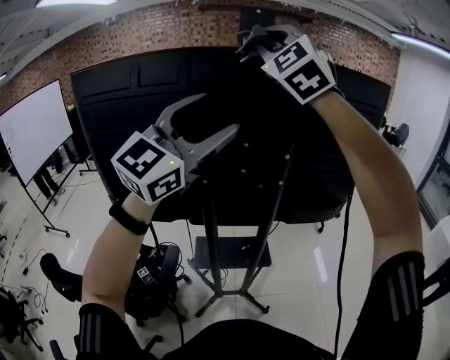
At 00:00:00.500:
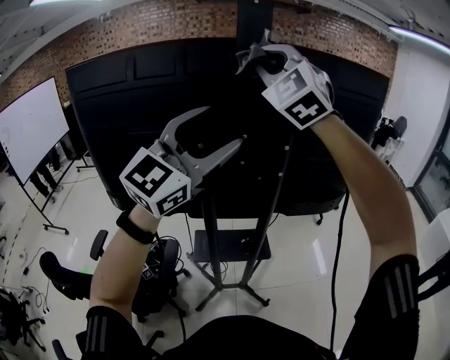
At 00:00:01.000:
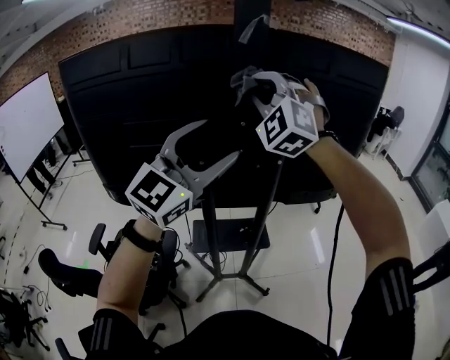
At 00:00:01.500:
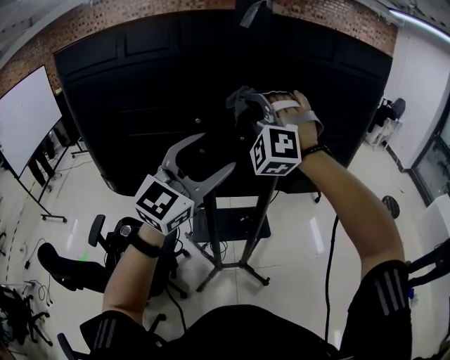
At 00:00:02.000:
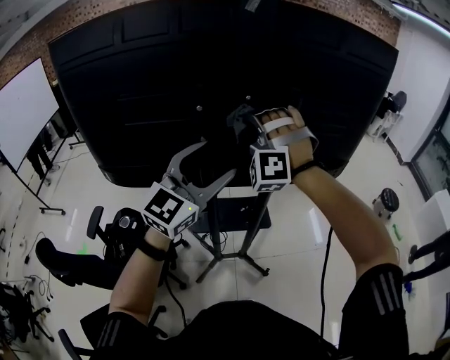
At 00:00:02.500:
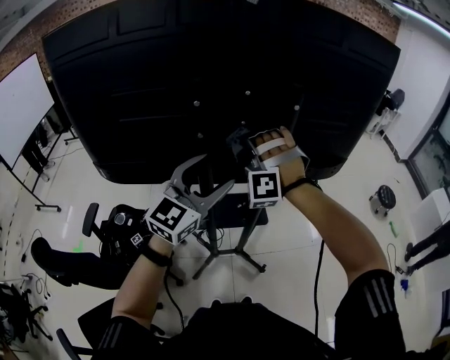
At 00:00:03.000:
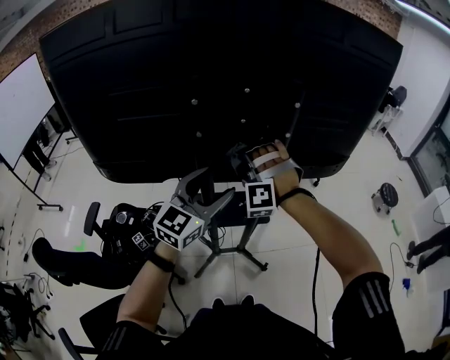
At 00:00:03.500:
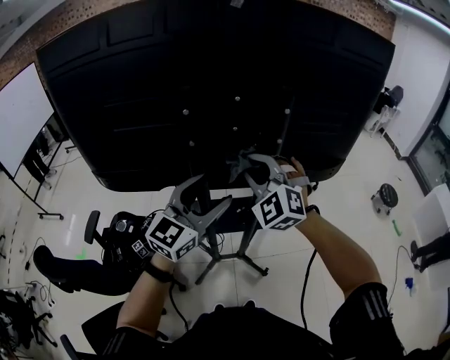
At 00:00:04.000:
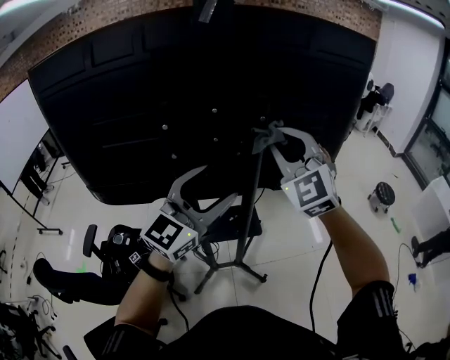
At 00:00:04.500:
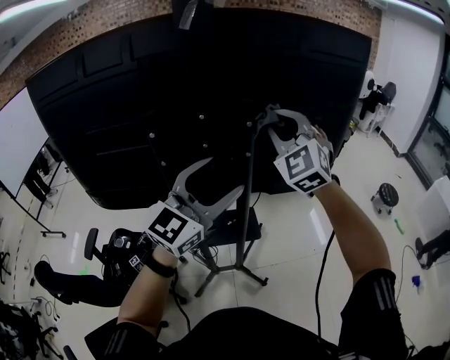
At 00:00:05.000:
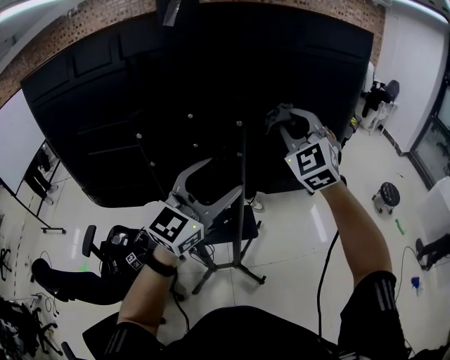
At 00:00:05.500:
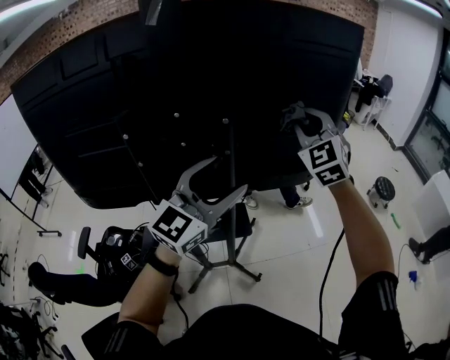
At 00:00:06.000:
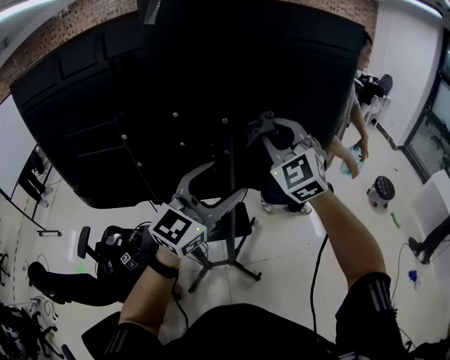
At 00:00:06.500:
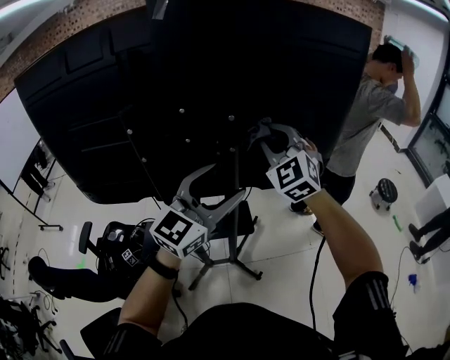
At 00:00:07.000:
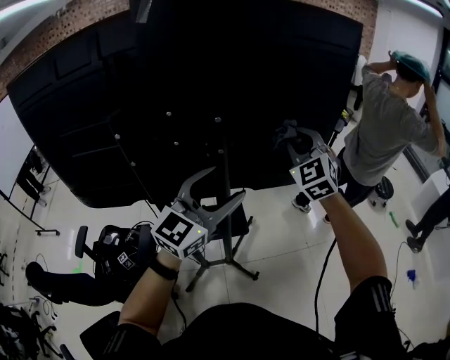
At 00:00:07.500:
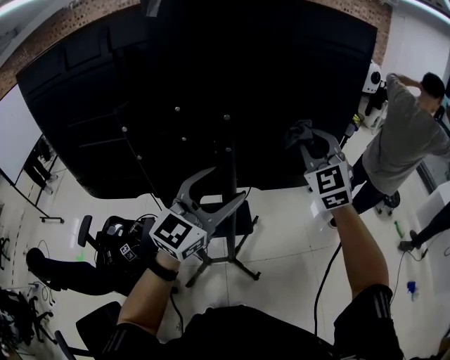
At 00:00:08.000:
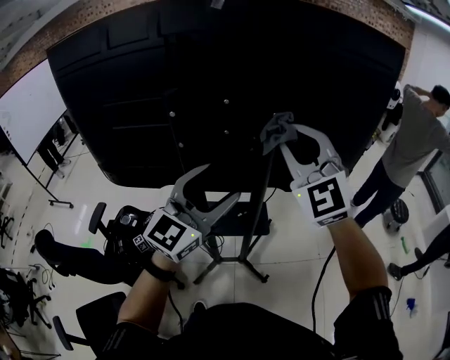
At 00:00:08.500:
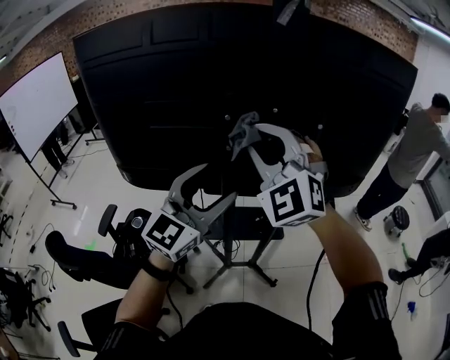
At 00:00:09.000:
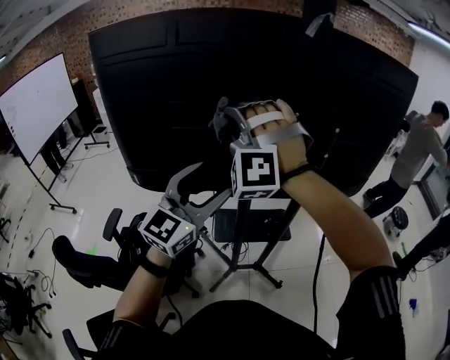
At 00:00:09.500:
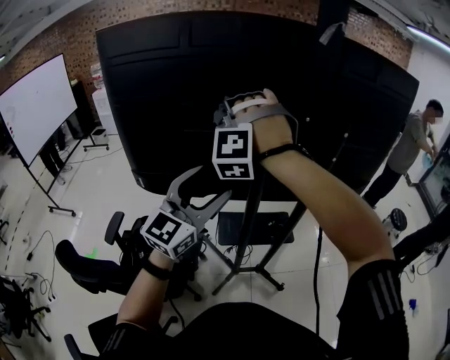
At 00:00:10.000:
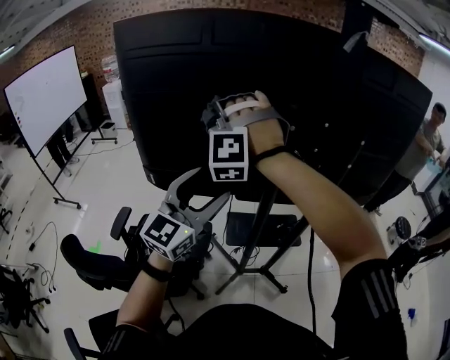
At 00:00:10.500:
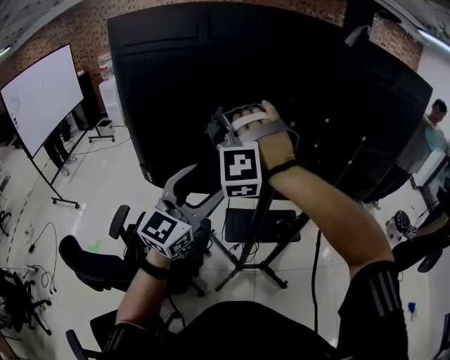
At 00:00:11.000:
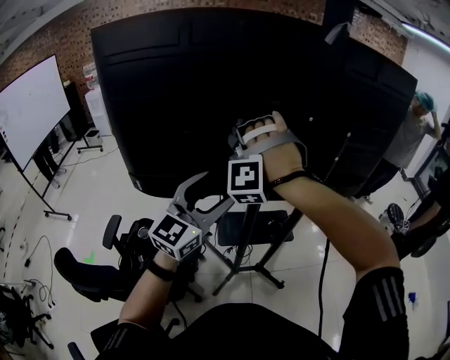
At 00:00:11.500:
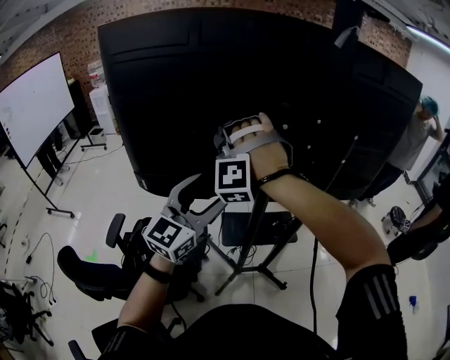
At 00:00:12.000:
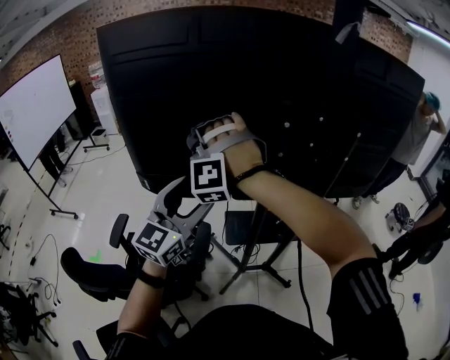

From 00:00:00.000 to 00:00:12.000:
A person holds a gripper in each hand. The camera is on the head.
From 00:00:00.000 to 00:00:02.000: The left gripper heads downward, covering about 25 cm. Meanwhile the right gripper heads downward, covering some 35 cm, and turns by roughly 40 degrees.
From 00:00:02.000 to 00:00:04.000: The right gripper travels to the right by about 15 cm, moves some 15 cm downward and comes back, and rolls clockwise, seen from behind, by some 50 degrees; the left gripper is displaced to the right by approximately 5 cm, and moves roughly 10 cm downward and comes back.
From 00:00:04.000 to 00:00:06.000: The right gripper goes about 10 cm forward and to the right, while the left gripper is displaced to the right and forward by roughly 10 cm.
From 00:00:06.000 to 00:00:08.000: The right gripper travels backward and to the left by roughly 10 cm. The left gripper heads to the left, covering some 10 cm.
From 00:00:08.000 to 00:00:10.000: The right gripper heads to the left, covering roughly 40 cm, and rolls counterclockwise, seen from behind, by approximately 60 degrees. The left gripper is displaced to the left by about 25 cm.
From 00:00:10.000 to 00:00:12.000: The right gripper moves downward, roughly 5 cm, and travels to the right and back again, approximately 10 cm each way.

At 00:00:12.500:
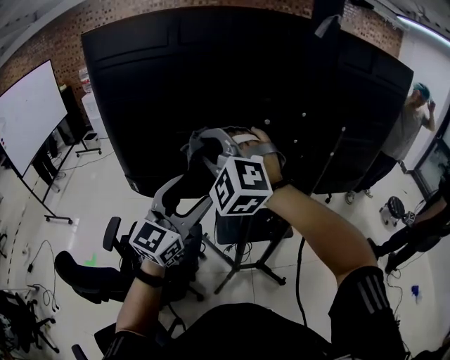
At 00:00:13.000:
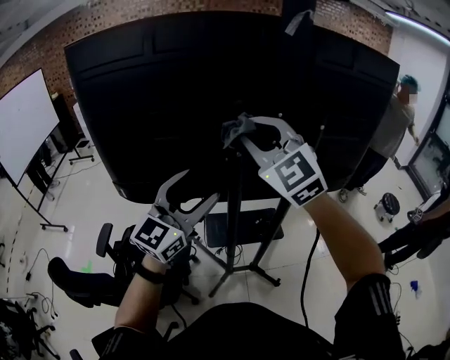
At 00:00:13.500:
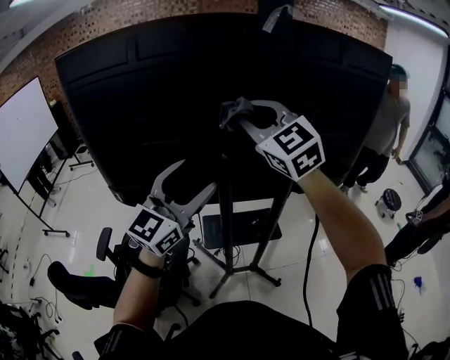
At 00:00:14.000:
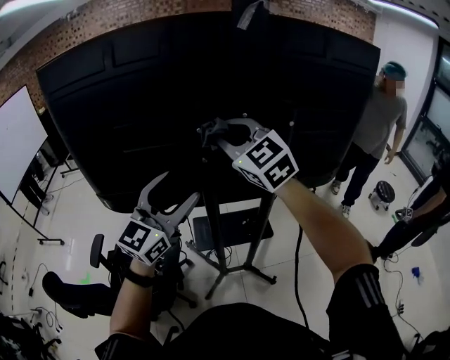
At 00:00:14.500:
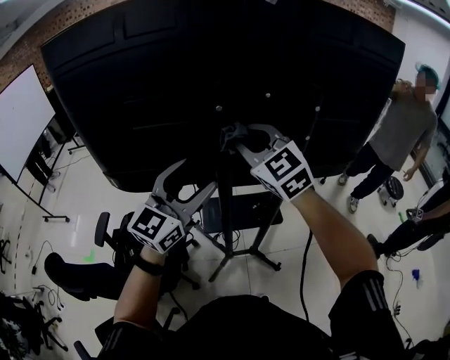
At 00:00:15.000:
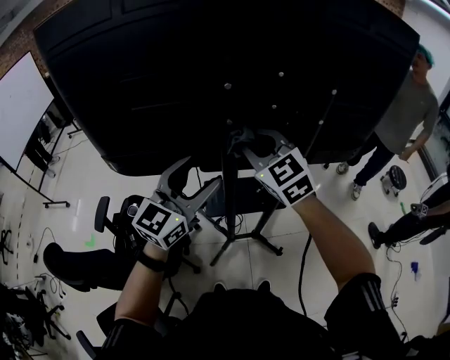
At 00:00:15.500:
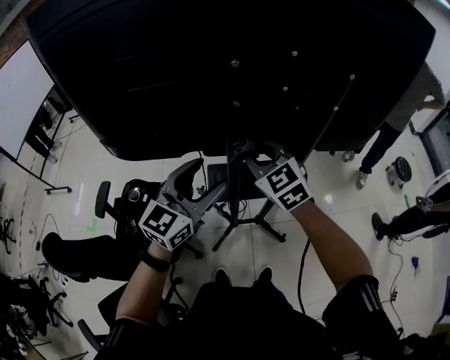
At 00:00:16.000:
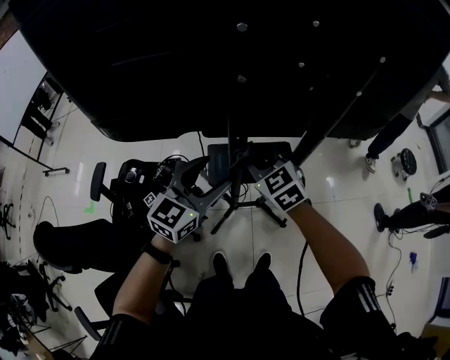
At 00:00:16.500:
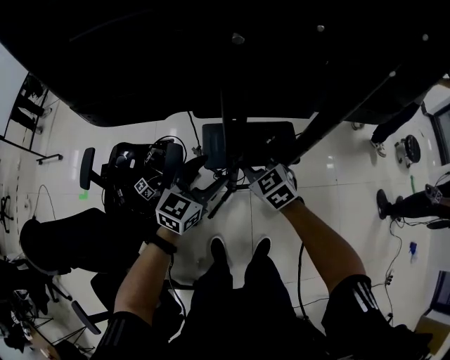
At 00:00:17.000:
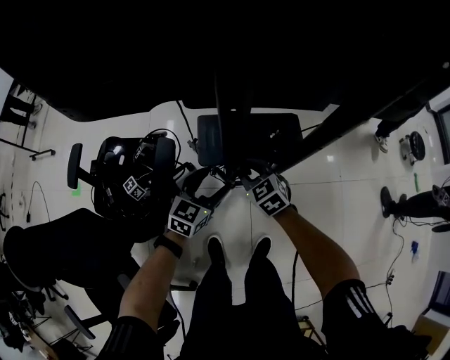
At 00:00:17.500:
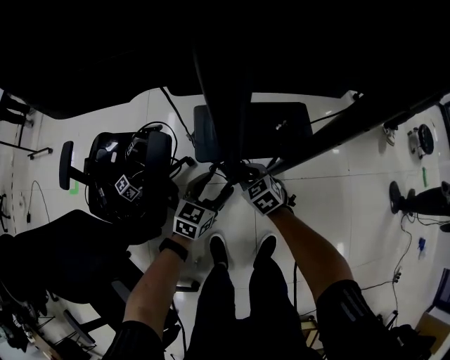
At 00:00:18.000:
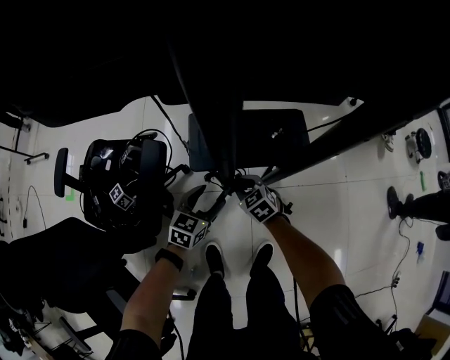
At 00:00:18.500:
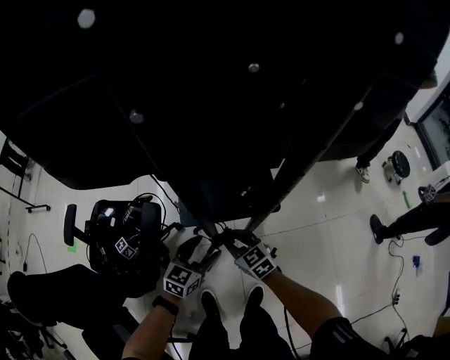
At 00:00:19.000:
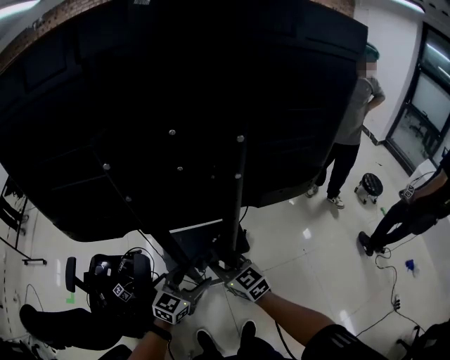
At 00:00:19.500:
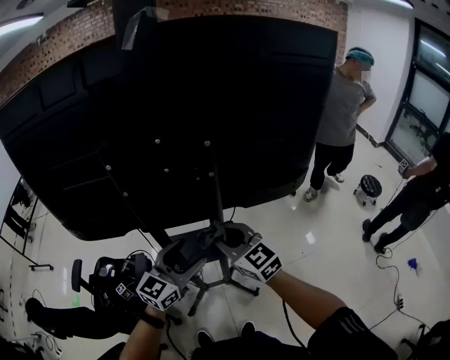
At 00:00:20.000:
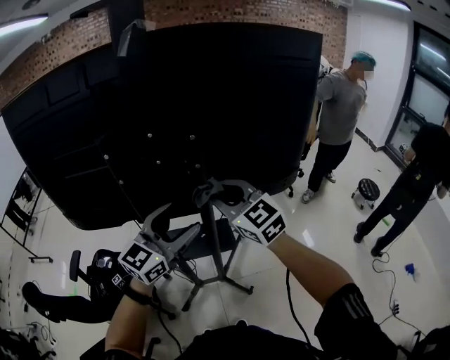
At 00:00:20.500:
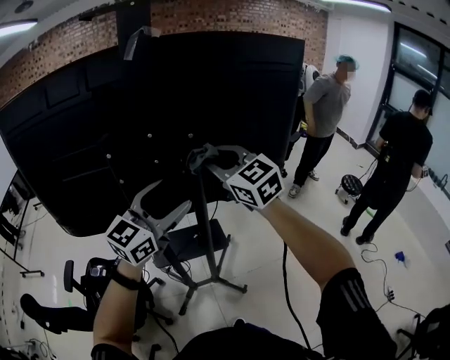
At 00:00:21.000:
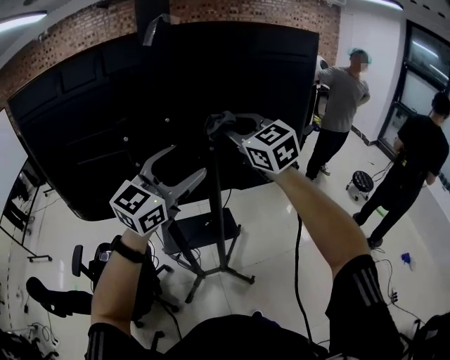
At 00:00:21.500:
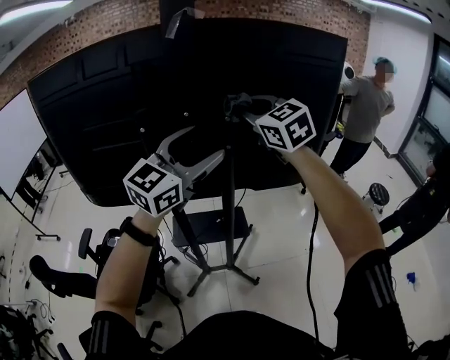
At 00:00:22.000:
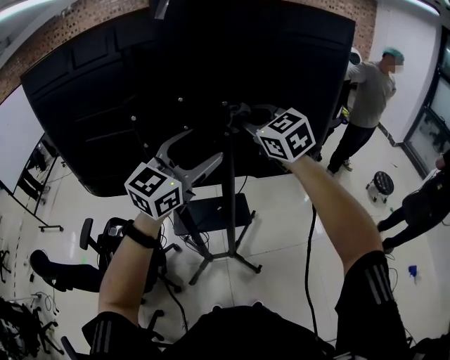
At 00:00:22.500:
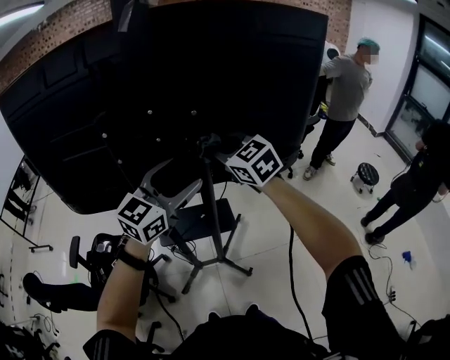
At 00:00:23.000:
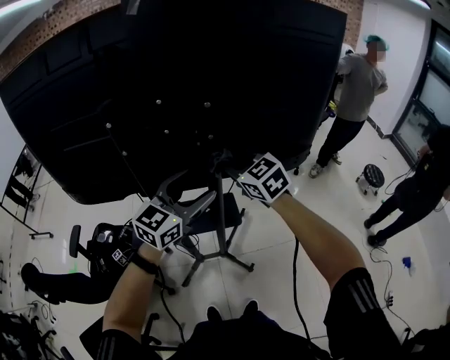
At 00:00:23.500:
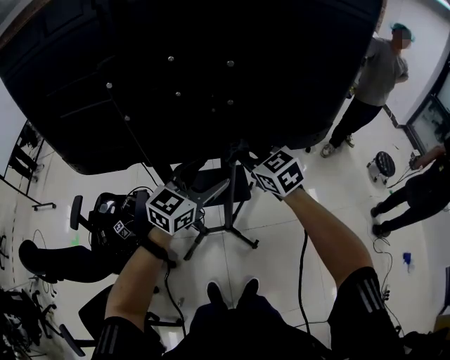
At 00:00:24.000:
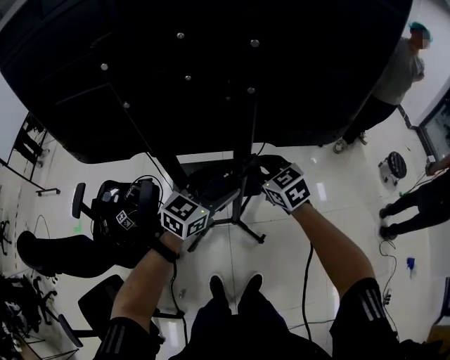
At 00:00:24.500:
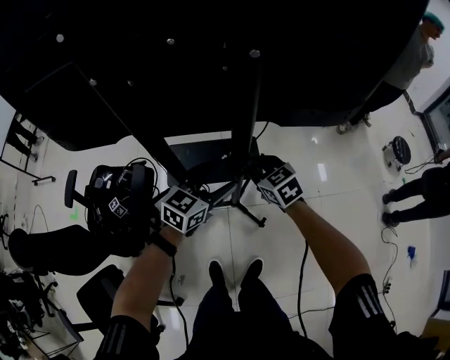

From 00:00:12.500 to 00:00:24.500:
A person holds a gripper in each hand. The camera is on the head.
From 00:00:12.500 to 00:00:14.500: The right gripper travels to the right by roughly 20 cm, and rolls clockwise, seen from behind, by approximately 40 degrees; the left gripper is displaced to the right by roughly 10 cm.
From 00:00:14.500 to 00:00:16.500: The two grippers go approximately 40 cm downward. The left gripper swivels roughly 30 degrees. The right gripper changes its angle by about 30 degrees.
From 00:00:16.500 to 00:00:18.500: The right gripper is displaced downward by some 10 cm. Meanwhile the left gripper is displaced downward and to the right by roughly 15 cm.
From 00:00:18.500 to 00:00:20.500: Both grippers move upward, roughly 60 cm. The right gripper rotates roughly 40 degrees; the left gripper tilts its fingers roughly 30 degrees upward.
From 00:00:20.500 to 00:00:22.500: The left gripper goes upward and returns, some 5 cm each way, while the right gripper shifts some 10 cm downward and forward.
From 00:00:22.500 to 00:00:24.500: Both grippers move downward, some 35 cm. The right gripper changes its angle by approximately 30 degrees. The left gripper rotates roughly 30 degrees.

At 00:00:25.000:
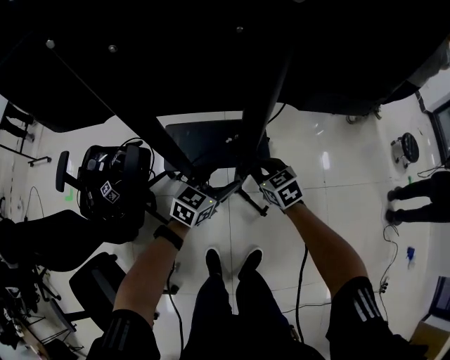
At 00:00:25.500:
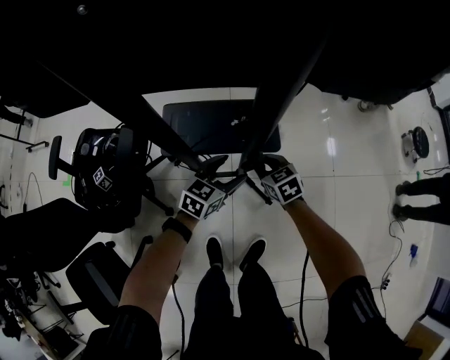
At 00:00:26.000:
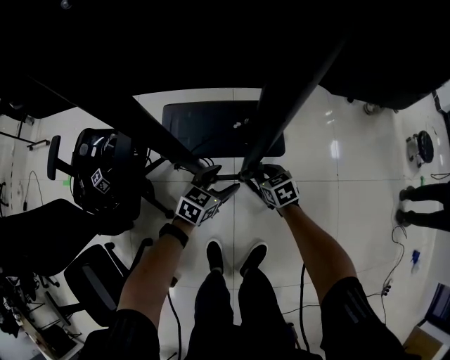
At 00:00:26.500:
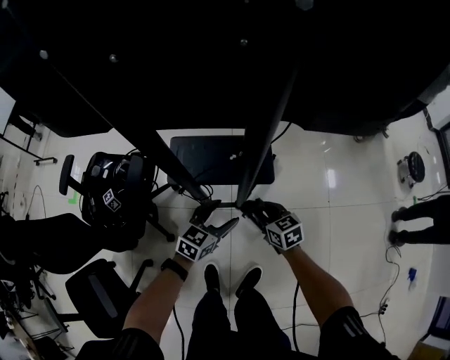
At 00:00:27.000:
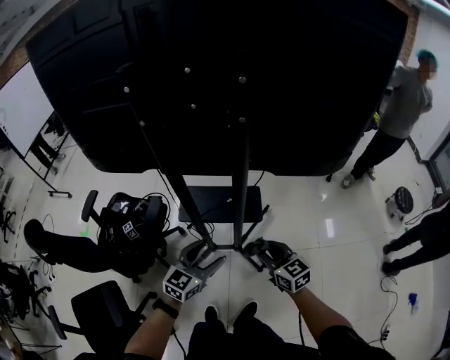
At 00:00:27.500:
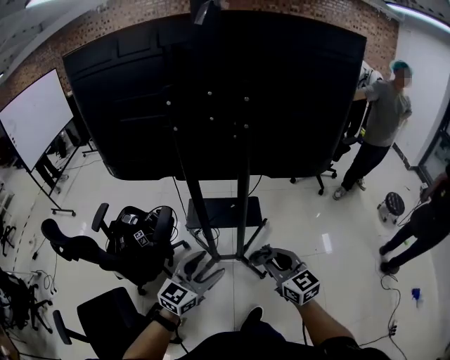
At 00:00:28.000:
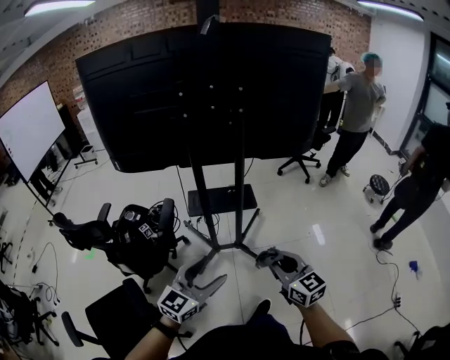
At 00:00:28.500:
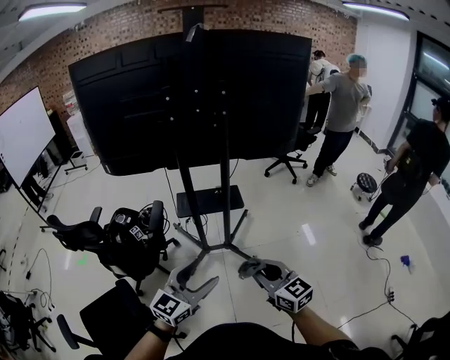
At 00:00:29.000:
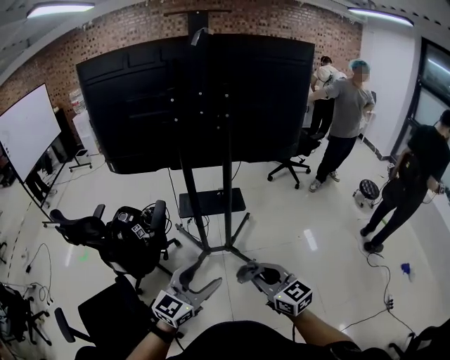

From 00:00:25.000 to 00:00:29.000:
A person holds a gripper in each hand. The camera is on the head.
From 00:00:25.000 to 00:00:27.000: The grippers both shift backward and upward by some 20 cm. The right gripper turns by approximately 20 degrees.
From 00:00:27.000 to 00:00:29.000: The right gripper travels backward by some 40 cm; the left gripper is displaced backward and upward by approximately 40 cm.
